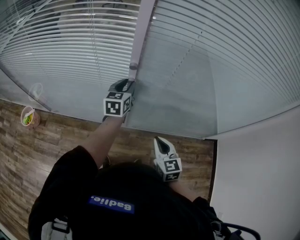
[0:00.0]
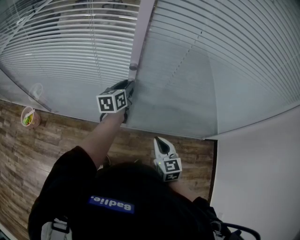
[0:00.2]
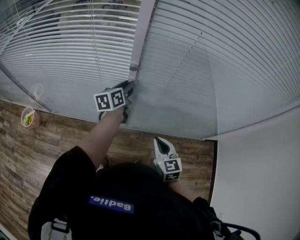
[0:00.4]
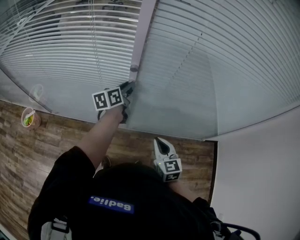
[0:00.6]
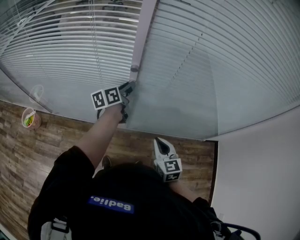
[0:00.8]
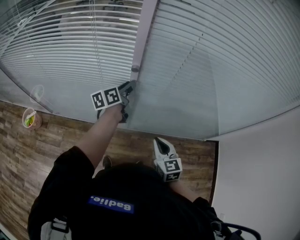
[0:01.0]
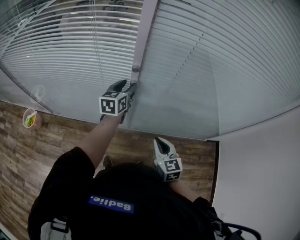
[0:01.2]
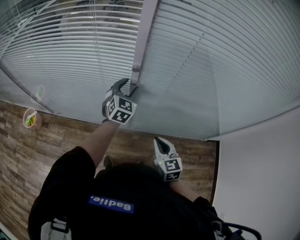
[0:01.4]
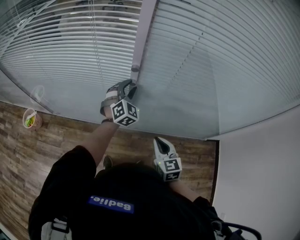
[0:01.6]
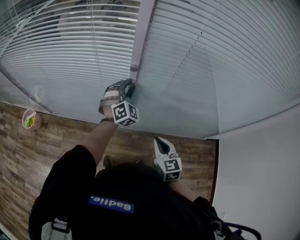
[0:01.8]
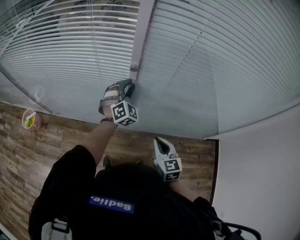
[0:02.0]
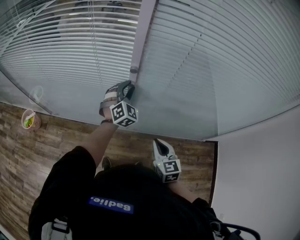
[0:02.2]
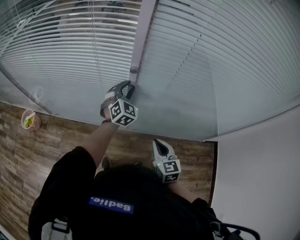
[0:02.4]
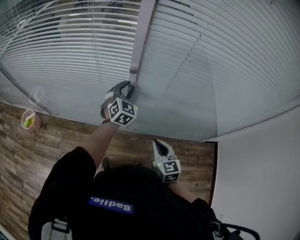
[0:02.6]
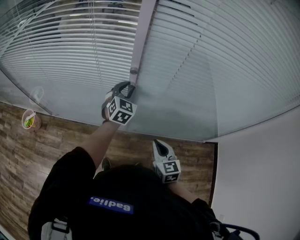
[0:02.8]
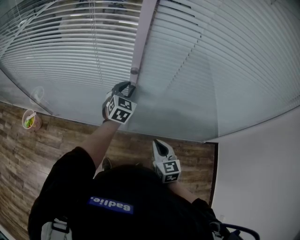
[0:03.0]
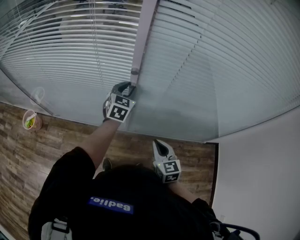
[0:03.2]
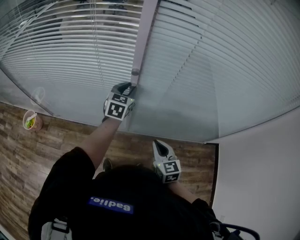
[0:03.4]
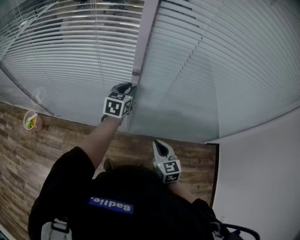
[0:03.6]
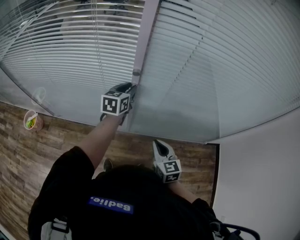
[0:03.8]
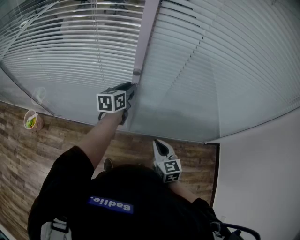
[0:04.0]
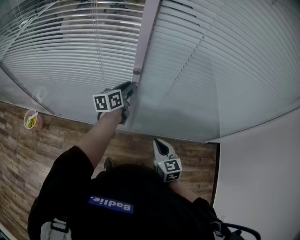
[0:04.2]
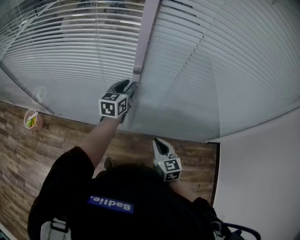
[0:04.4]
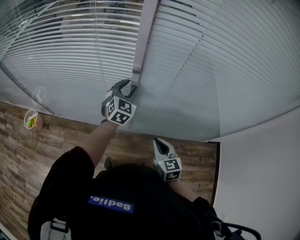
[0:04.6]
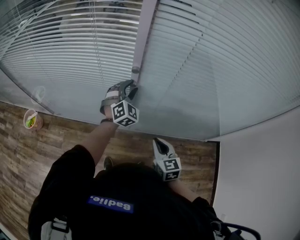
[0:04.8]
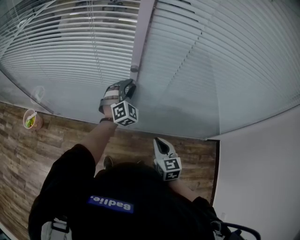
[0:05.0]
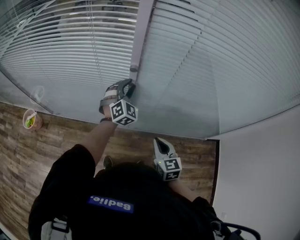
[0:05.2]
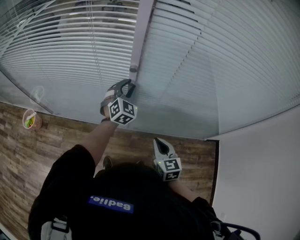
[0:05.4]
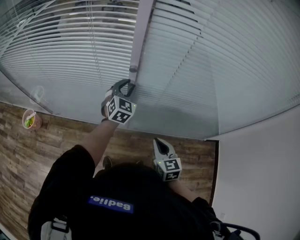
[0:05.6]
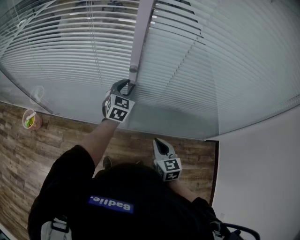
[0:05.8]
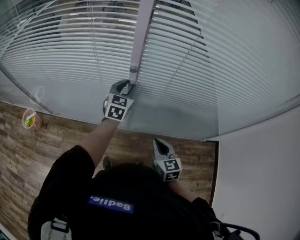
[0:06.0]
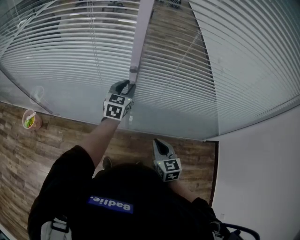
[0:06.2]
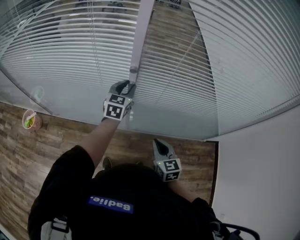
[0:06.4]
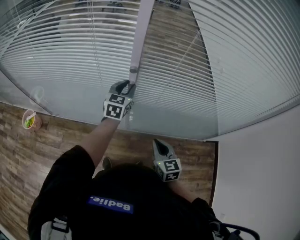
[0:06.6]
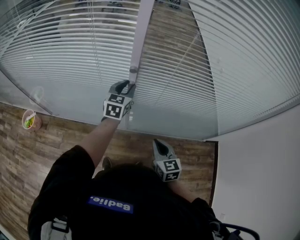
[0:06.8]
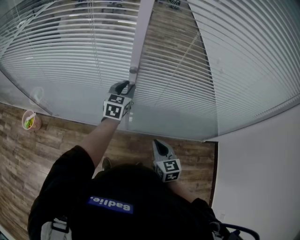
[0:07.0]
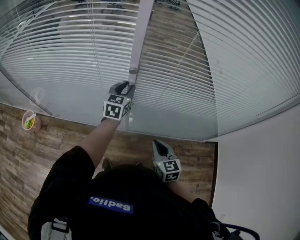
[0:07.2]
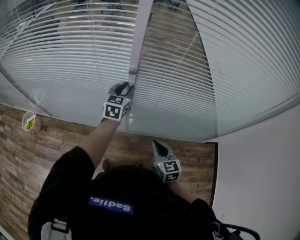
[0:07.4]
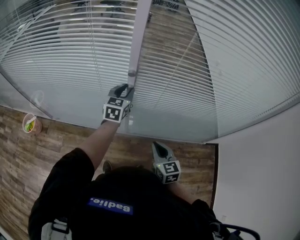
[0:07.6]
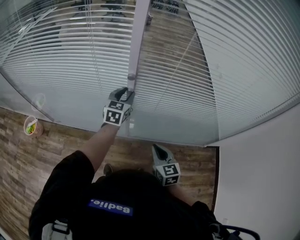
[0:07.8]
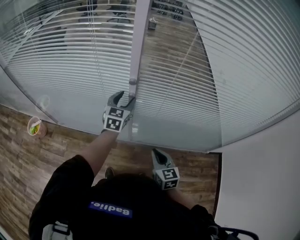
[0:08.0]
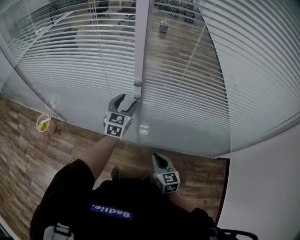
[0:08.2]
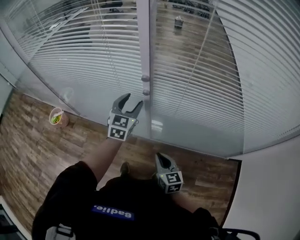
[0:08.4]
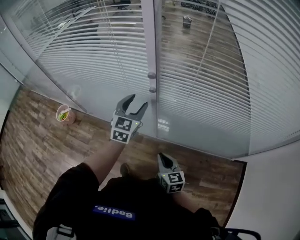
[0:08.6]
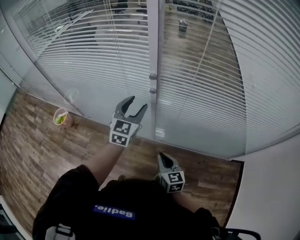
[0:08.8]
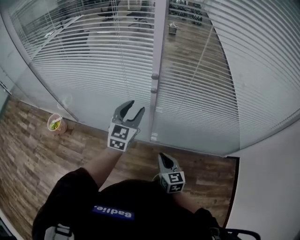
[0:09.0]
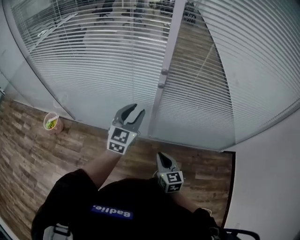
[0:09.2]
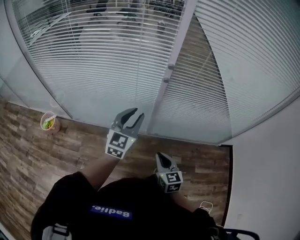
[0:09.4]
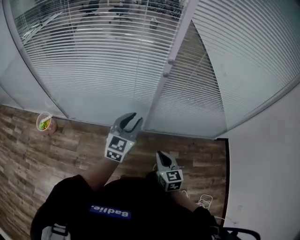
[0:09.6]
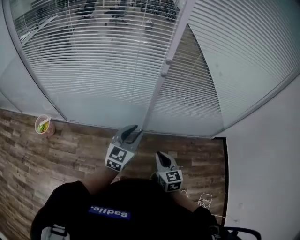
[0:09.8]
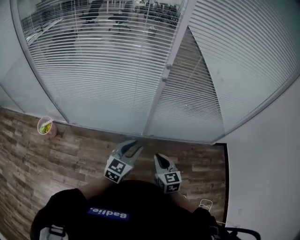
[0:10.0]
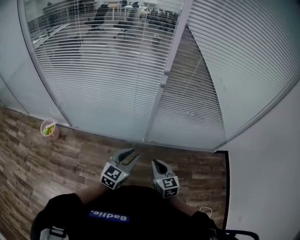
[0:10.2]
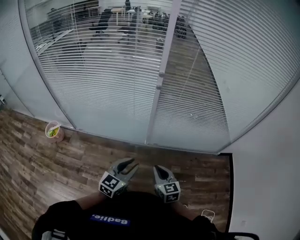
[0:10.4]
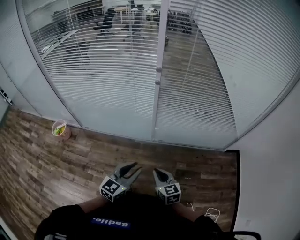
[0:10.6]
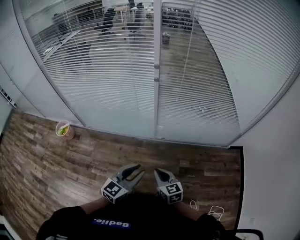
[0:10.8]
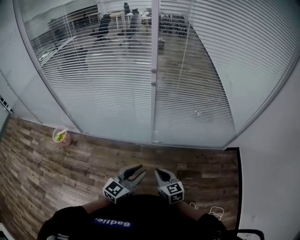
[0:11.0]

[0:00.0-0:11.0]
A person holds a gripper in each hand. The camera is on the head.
0:00.0 to 0:01.6: The left gripper twists about 50 degrees clockwise, seen from behind.
0:01.6 to 0:03.2: The left gripper swivels approximately 30 degrees.
0:03.2 to 0:04.8: The left gripper changes its angle by some 40 degrees.
0:04.8 to 0:06.2: The left gripper twists approximately 40 degrees counterclockwise, seen from behind.
0:06.2 to 0:07.8: Neither gripper changes place.
0:07.8 to 0:09.4: The right gripper heads to the left and backward, covering some 15 cm. The left gripper is displaced backward and to the left by some 25 cm, and opens, then closes again.
0:09.4 to 0:11.0: The left gripper is displaced backward by approximately 25 cm, and turns by roughly 20 degrees; the right gripper goes roughly 10 cm backward.

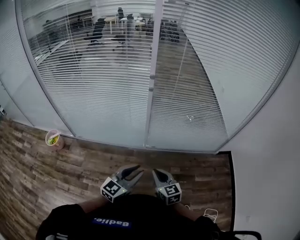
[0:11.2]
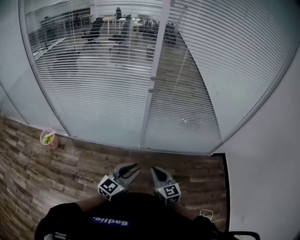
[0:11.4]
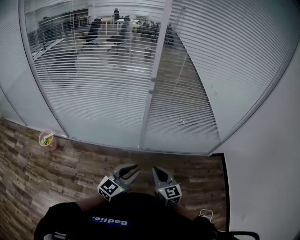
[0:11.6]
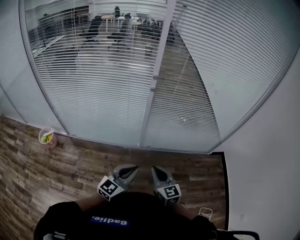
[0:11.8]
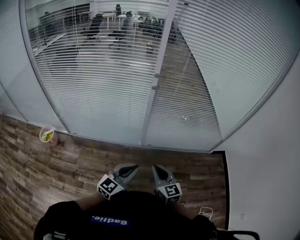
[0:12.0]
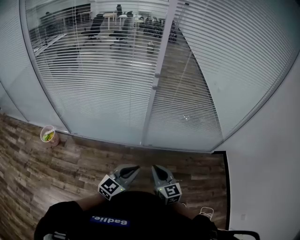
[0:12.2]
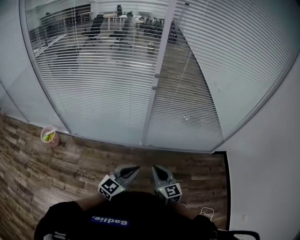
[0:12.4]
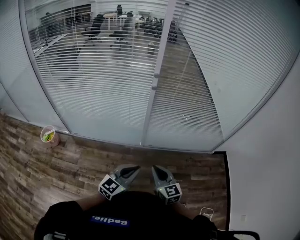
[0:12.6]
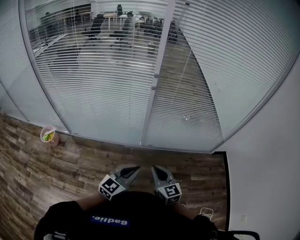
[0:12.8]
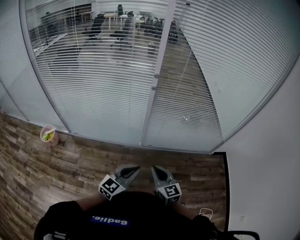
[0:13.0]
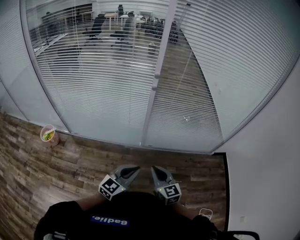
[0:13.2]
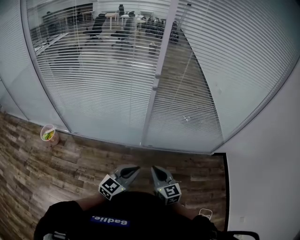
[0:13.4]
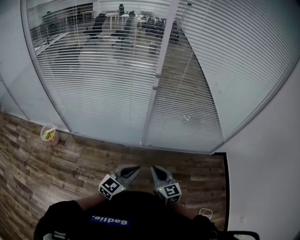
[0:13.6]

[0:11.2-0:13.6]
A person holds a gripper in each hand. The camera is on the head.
0:11.2 to 0:12.4: The left gripper closes up.
0:12.4 to 0:13.6: Both grippers stay put.

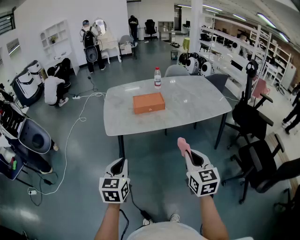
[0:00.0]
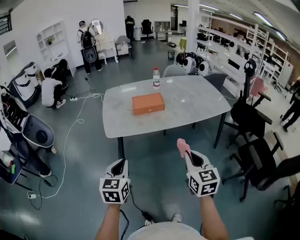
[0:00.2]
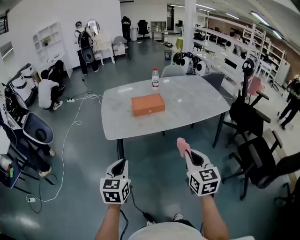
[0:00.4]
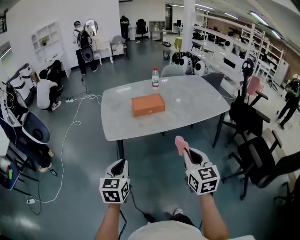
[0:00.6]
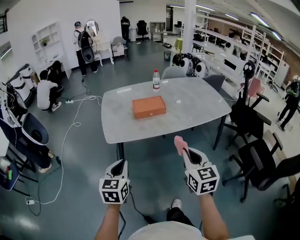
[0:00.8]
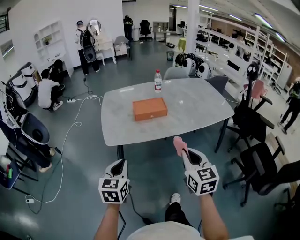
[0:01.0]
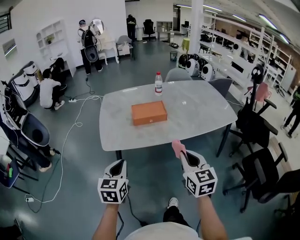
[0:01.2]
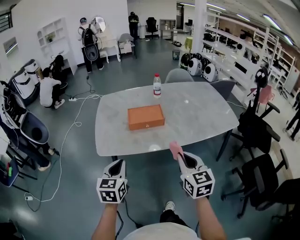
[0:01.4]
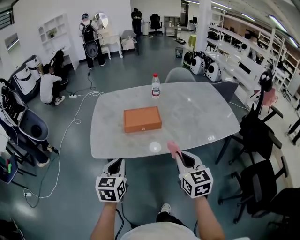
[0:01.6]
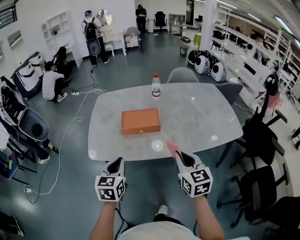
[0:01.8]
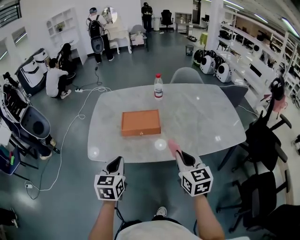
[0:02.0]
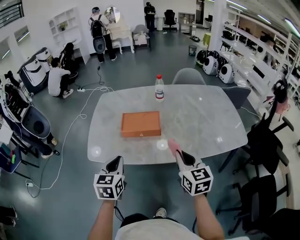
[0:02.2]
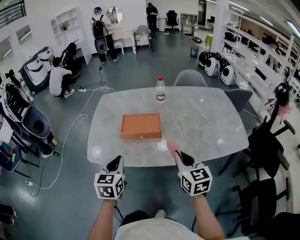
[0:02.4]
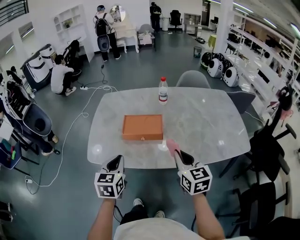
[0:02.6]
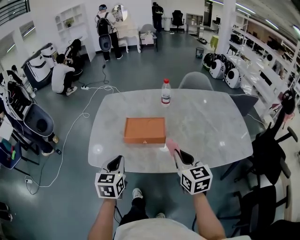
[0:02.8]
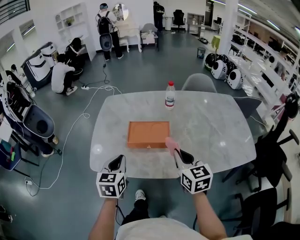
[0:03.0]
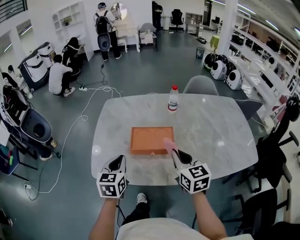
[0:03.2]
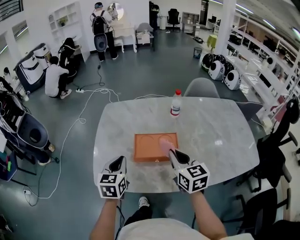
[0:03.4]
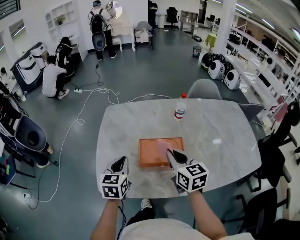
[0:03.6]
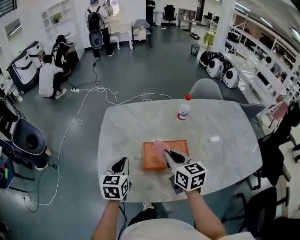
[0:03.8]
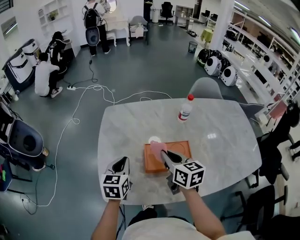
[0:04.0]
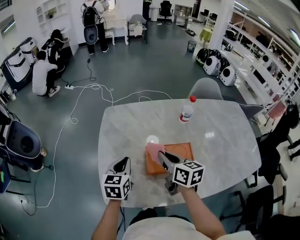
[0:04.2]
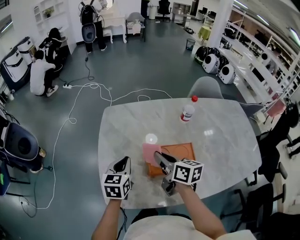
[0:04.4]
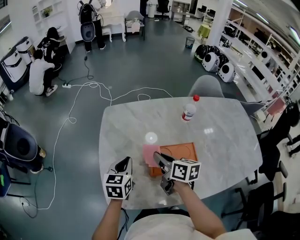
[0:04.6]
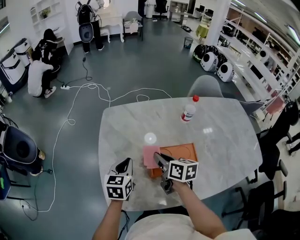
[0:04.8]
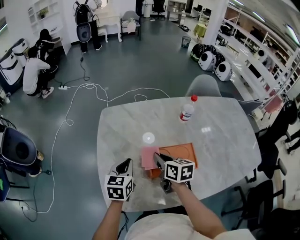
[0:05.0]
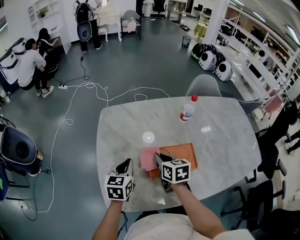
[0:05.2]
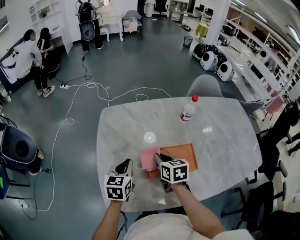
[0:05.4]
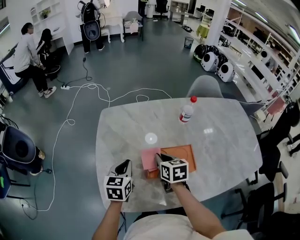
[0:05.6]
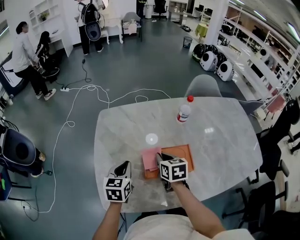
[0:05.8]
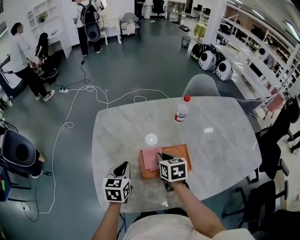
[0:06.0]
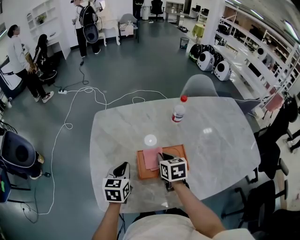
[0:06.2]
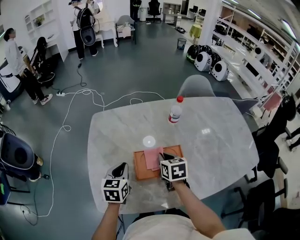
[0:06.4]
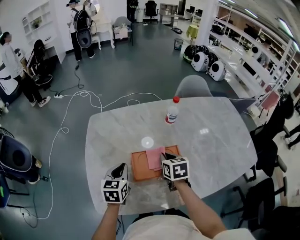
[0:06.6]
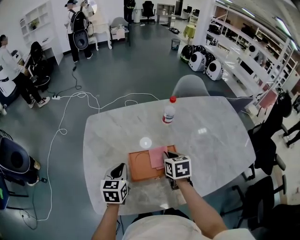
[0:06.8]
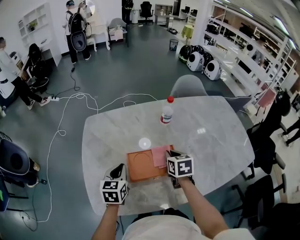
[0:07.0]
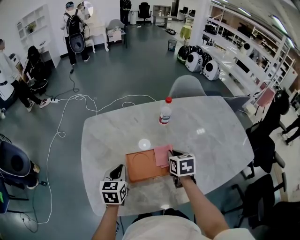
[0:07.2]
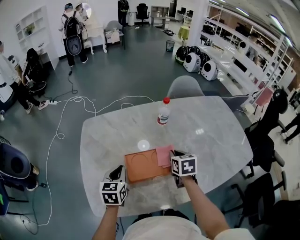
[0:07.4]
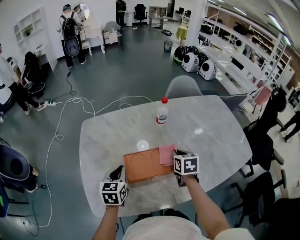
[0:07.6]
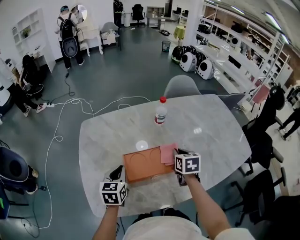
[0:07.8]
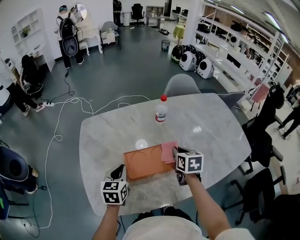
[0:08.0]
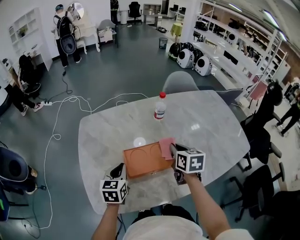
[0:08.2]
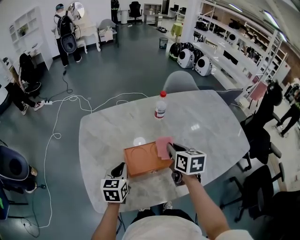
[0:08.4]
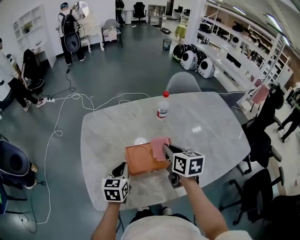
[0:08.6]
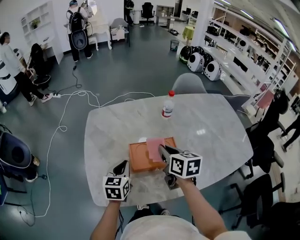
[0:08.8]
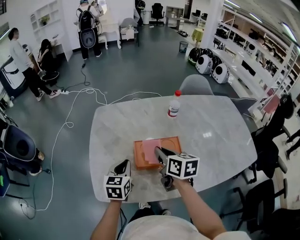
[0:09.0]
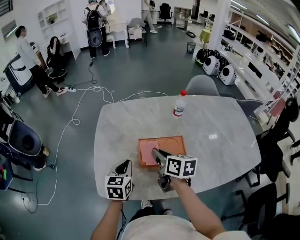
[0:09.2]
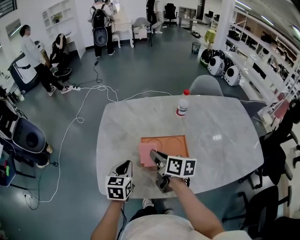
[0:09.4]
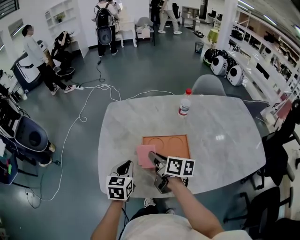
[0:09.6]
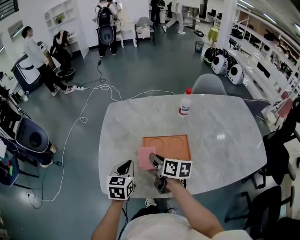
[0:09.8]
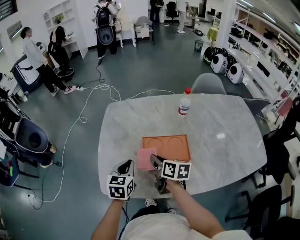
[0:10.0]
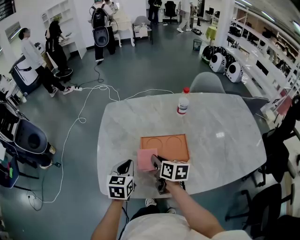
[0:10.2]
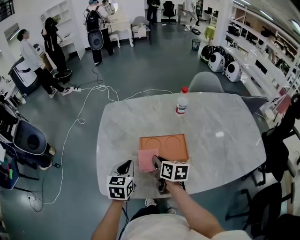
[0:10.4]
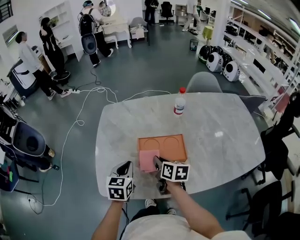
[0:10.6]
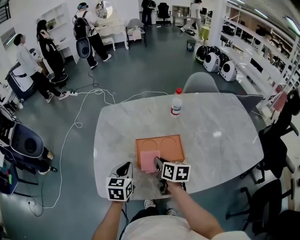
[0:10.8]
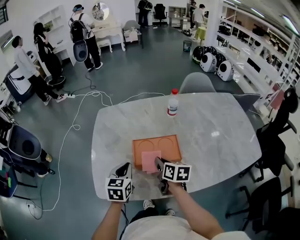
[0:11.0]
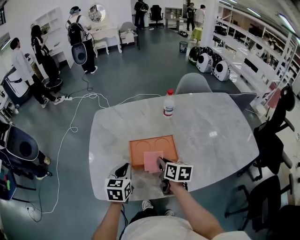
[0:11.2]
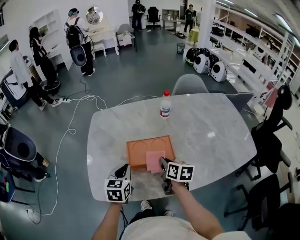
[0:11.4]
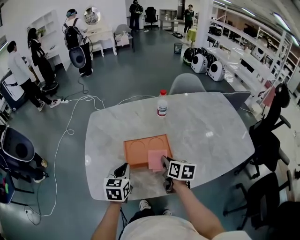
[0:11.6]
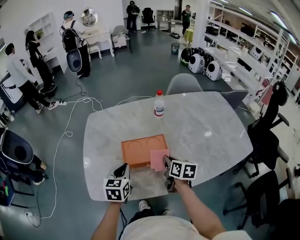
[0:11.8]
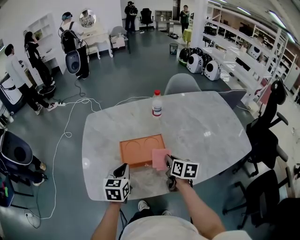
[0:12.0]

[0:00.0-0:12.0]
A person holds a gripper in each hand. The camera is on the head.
0:00.0 to 0:01.6: The grippers both shift forward by some 20 cm.
0:01.6 to 0:03.0: The two grippers go approximately 15 cm forward.
0:03.0 to 0:04.4: The right gripper shifts roughly 30 cm forward and to the left, and turns by approximately 40 degrees. Meanwhile the left gripper travels forward by roughly 25 cm.
0:04.4 to 0:06.0: The right gripper shifts some 10 cm downward and to the right, and turns by some 30 degrees.
0:06.0 to 0:07.6: The right gripper heads to the right, covering about 15 cm. The left gripper moves to the right, about 5 cm.
0:07.6 to 0:09.0: The left gripper is displaced backward by approximately 5 cm. The right gripper goes some 15 cm to the left, upward and backward, and swivels roughly 30 degrees.
0:09.0 to 0:10.4: The right gripper is displaced downward by about 10 cm.
0:10.4 to 0:12.0: The right gripper travels to the right by roughly 15 cm. The left gripper goes approximately 5 cm to the right.
